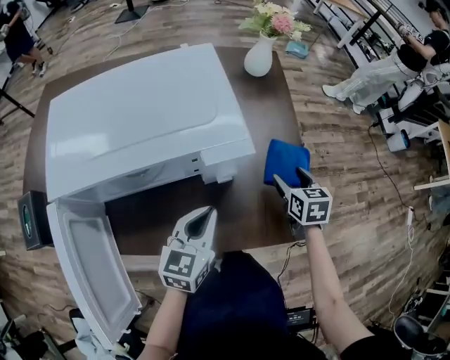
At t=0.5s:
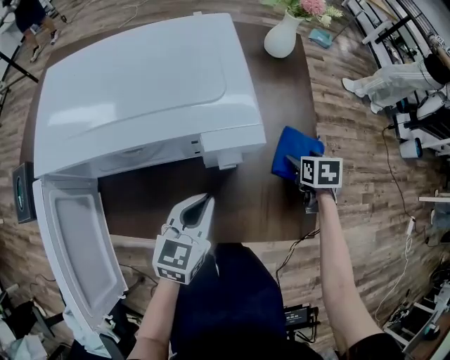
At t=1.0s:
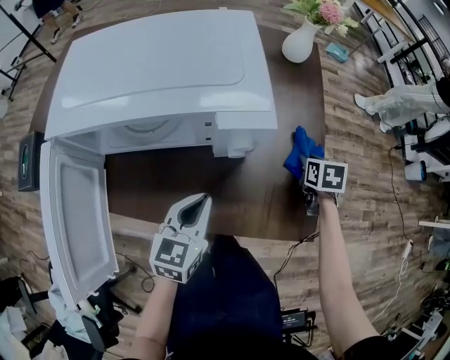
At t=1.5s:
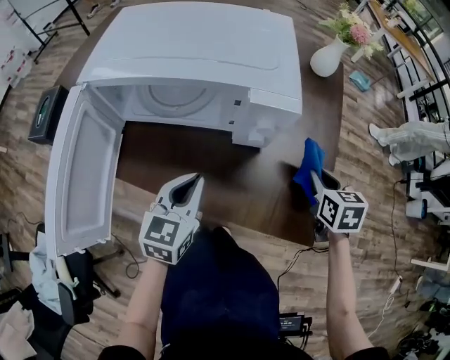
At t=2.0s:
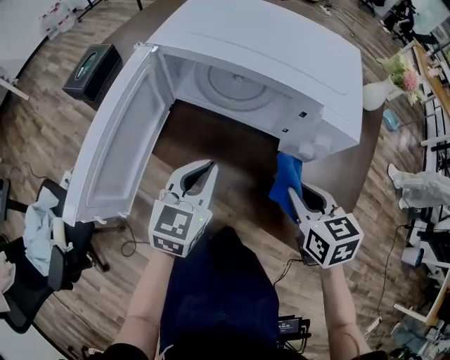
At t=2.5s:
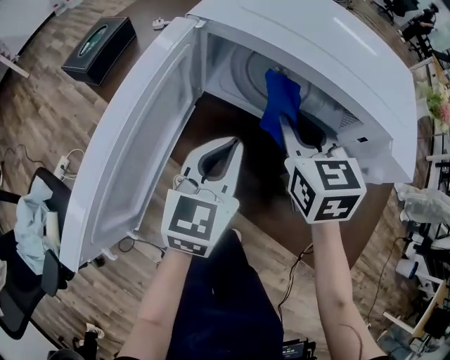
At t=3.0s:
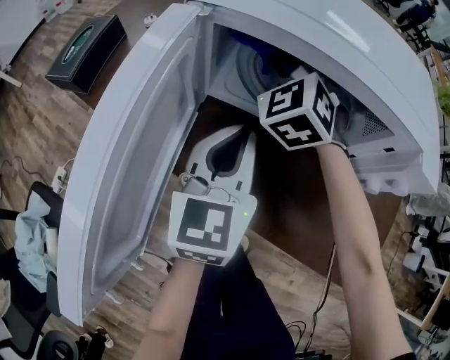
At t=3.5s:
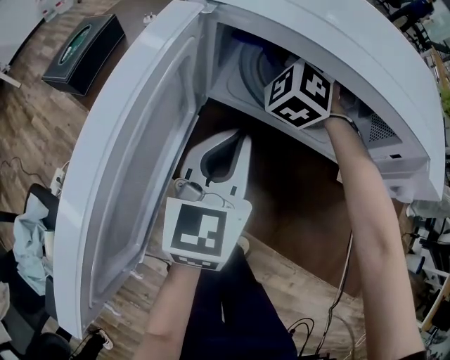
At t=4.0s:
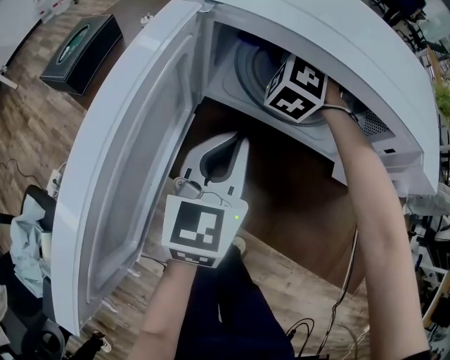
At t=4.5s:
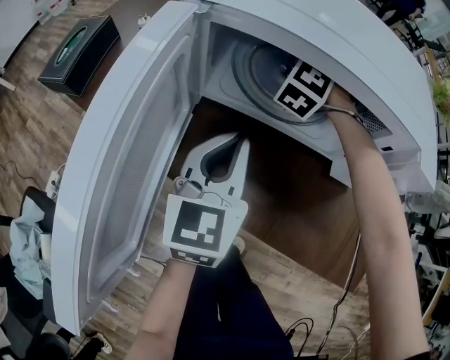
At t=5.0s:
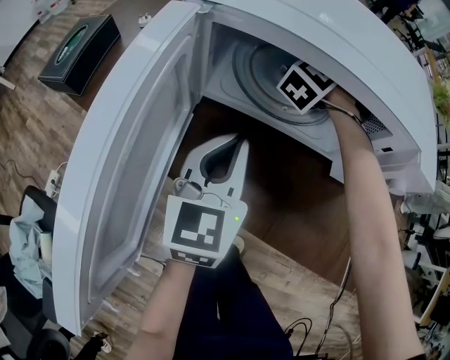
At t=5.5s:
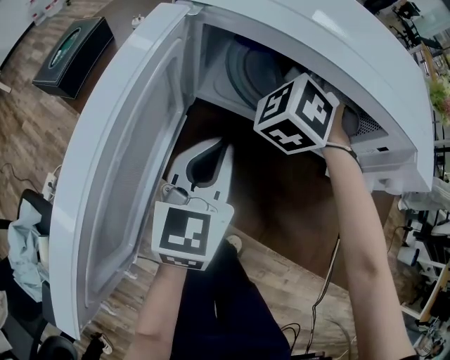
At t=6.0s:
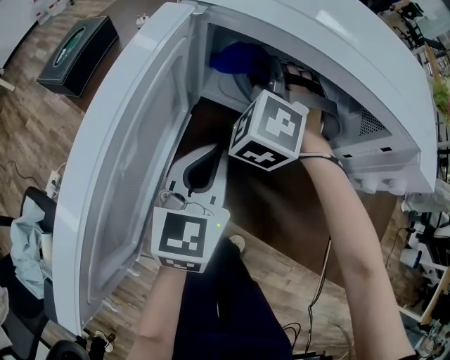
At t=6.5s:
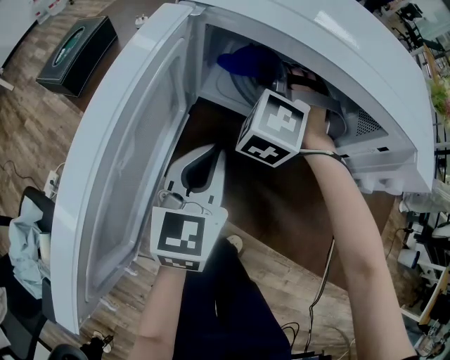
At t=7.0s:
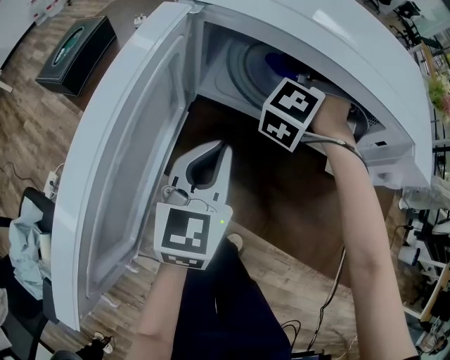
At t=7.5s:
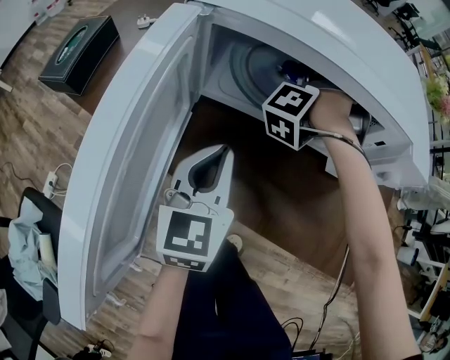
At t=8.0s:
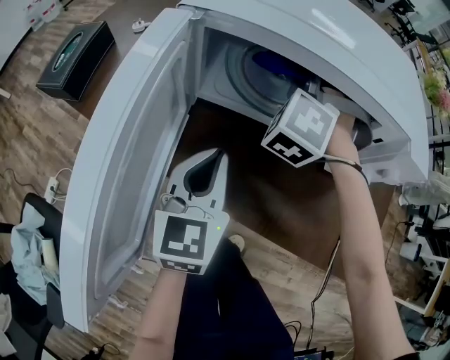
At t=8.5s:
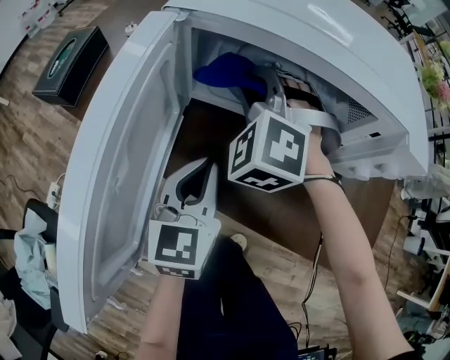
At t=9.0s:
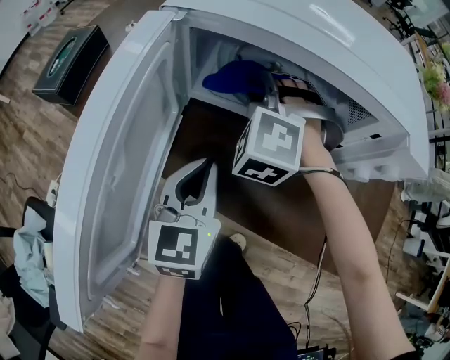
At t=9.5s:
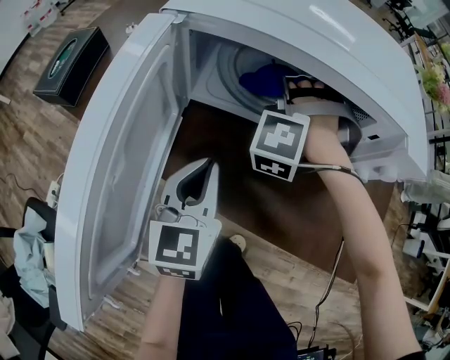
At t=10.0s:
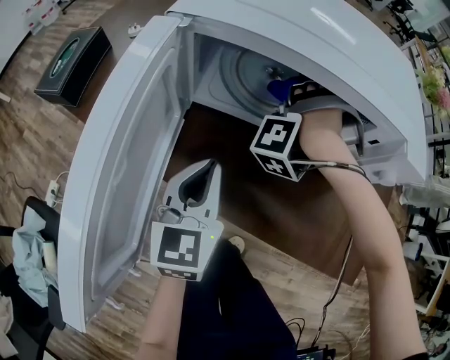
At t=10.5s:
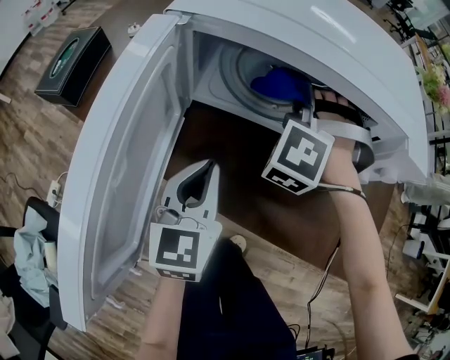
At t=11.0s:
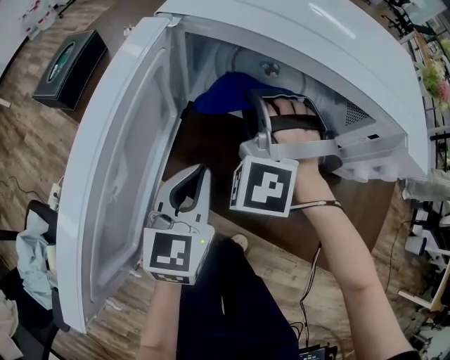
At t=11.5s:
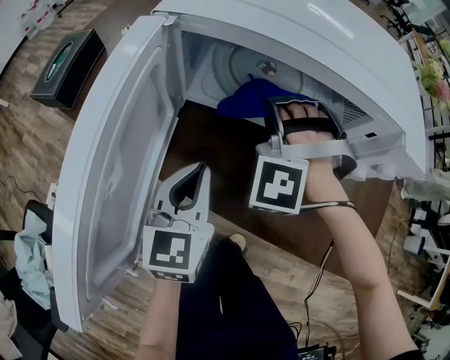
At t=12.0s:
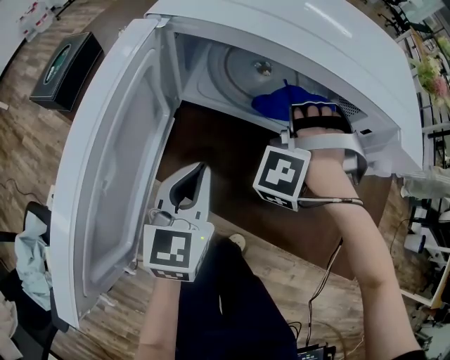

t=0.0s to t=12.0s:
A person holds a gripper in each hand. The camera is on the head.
t=0.0s to t=2.0s: The left gripper ends up roughly 15 cm from where it was, and changes its angle by about 30 degrees, while the right gripper shifts by approximately 25 cm, rotates some 50 degrees, and closes up.
t=2.0s to t=4.0s: The right gripper travels forward and to the left by about 40 cm, and rotates around the line of its fingers by roughly 80 degrees, counterclockwise from behind. Meanwhile the left gripper heads forward and to the left, covering approximately 15 cm.
t=4.0s to t=6.0s: The right gripper heads backward, covering approximately 10 cm, and reaches approximately 10 cm to the right, then returns.
t=8.0s to t=10.0s: The right gripper shifts by roughly 10 cm, and swivels about 50 degrees.

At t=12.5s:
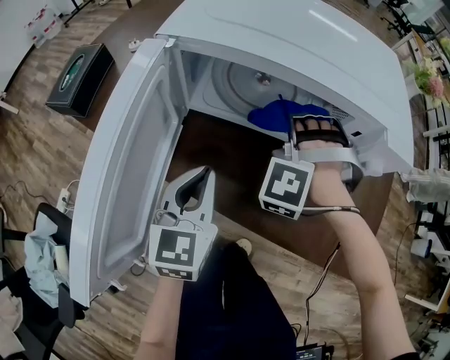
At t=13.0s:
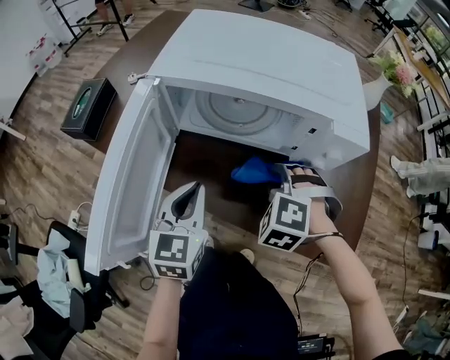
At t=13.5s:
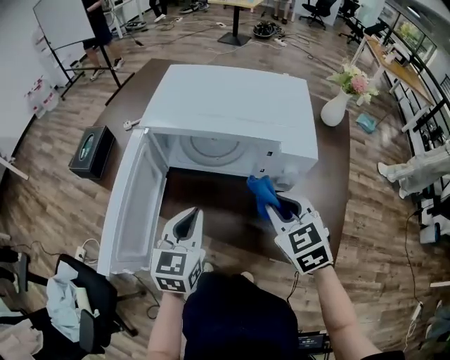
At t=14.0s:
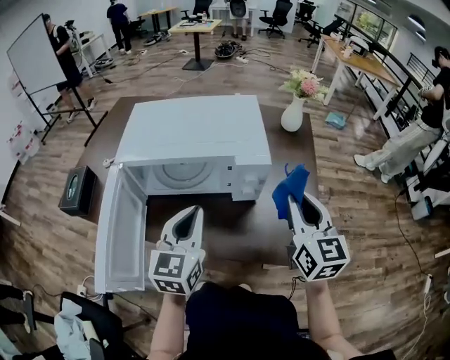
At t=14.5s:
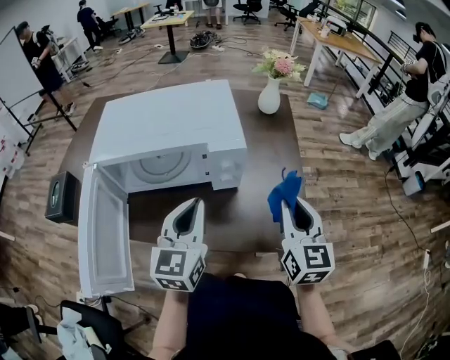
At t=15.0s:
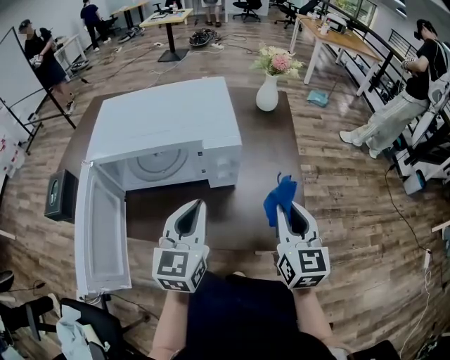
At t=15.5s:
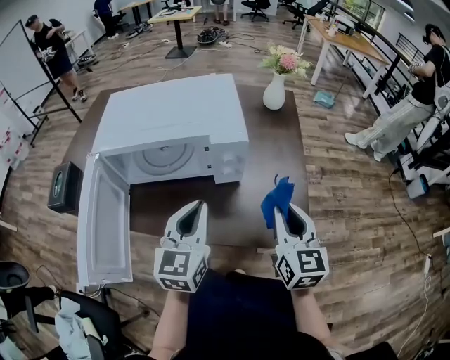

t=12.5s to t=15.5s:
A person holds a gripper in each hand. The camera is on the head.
t=12.5s to t=14.0s: The right gripper shifts about 35 cm to the right, upward and backward, and rotates around the line of its fingers by some 110 degrees, clockwise from behind. The left gripper travels upward and to the right by some 25 cm.
t=14.0s to t=15.5s: The left gripper goes roughly 5 cm to the right; the right gripper travels downward and backward by roughly 10 cm.

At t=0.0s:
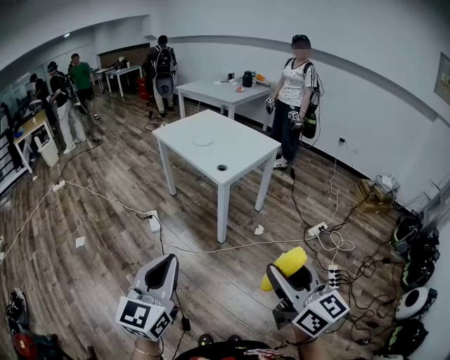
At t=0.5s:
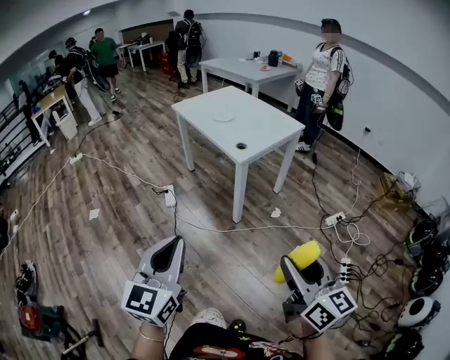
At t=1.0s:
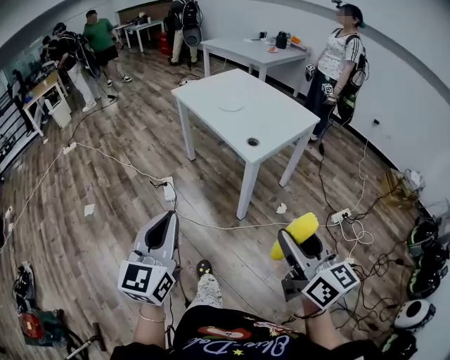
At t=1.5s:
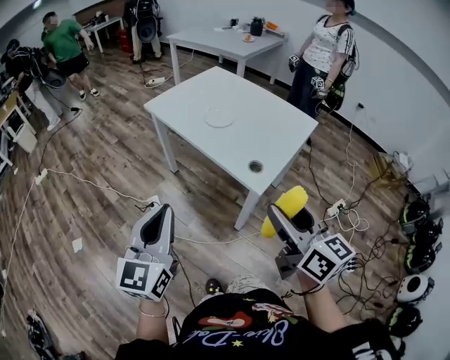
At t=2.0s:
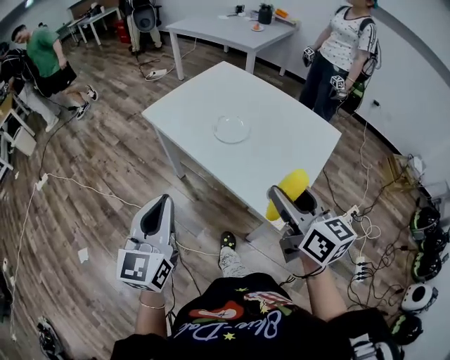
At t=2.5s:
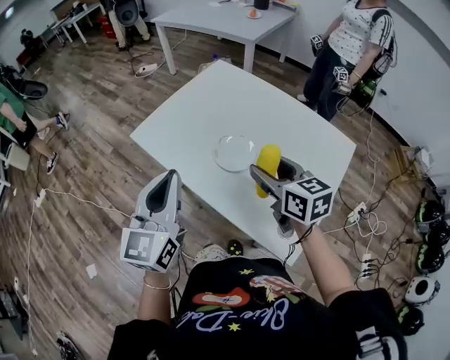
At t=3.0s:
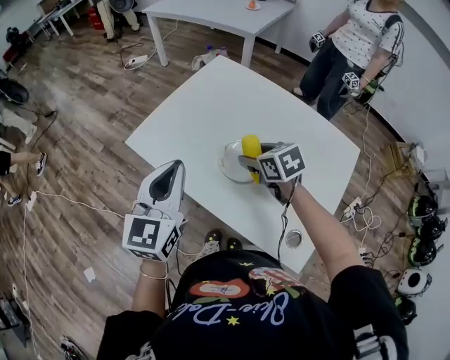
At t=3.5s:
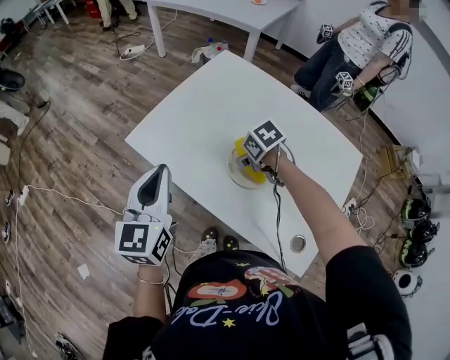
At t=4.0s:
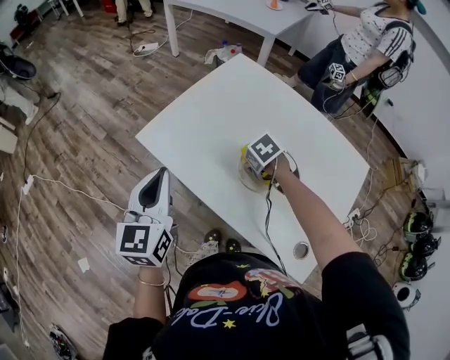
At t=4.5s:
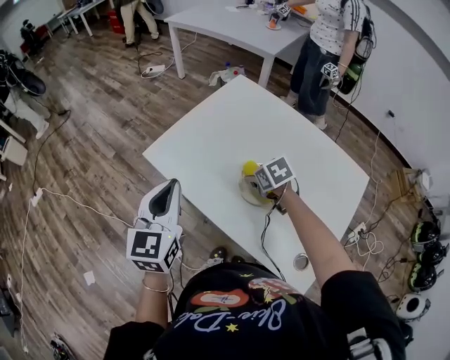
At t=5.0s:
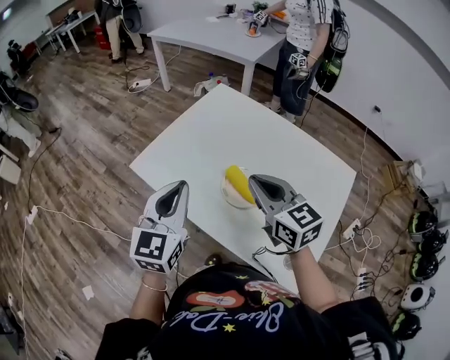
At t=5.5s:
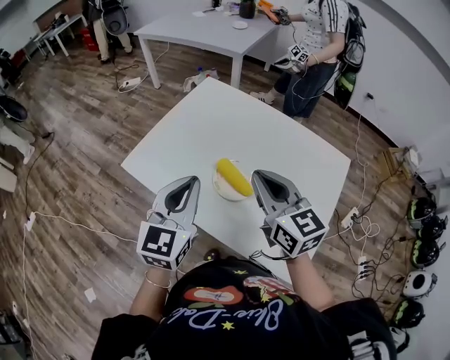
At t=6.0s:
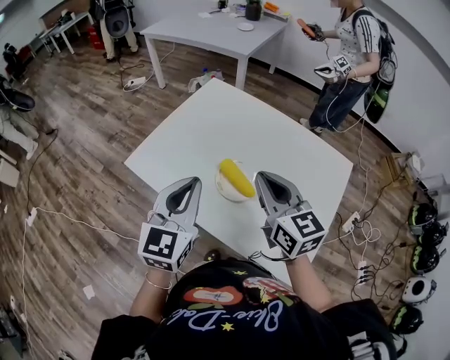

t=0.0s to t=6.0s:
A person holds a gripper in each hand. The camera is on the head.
t=0.0s to t=2.0s: The two grippers travel together, forward, some 70 cm.
t=2.0s to t=4.0s: The right gripper shifts by some 50 cm, and points its fingers approximately 70 degrees further downward, while the left gripper ends up some 35 cm from where it was.
t=4.0s to t=6.0s: The right gripper heads upward, covering some 25 cm, angles its fingers upward, by some 70 degrees, and closes. The left gripper changes place by some 15 cm, and turns by some 20 degrees.

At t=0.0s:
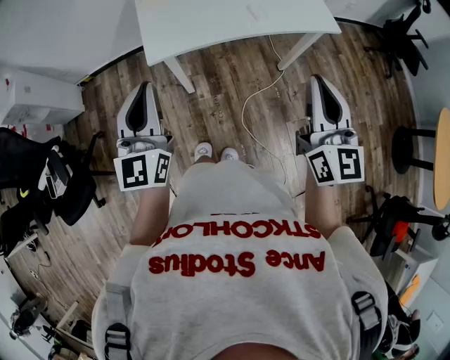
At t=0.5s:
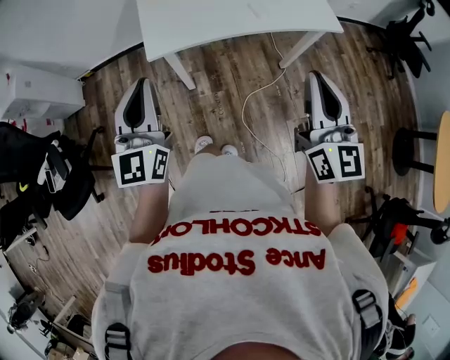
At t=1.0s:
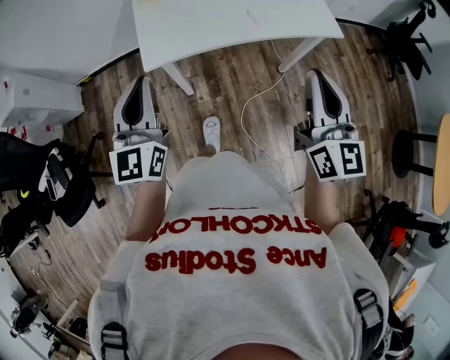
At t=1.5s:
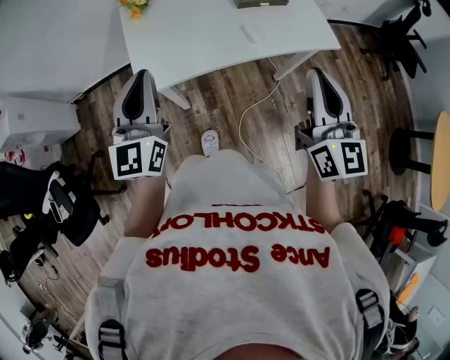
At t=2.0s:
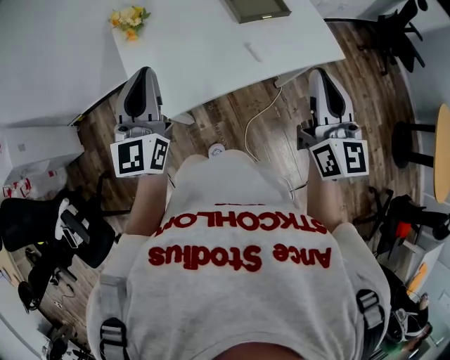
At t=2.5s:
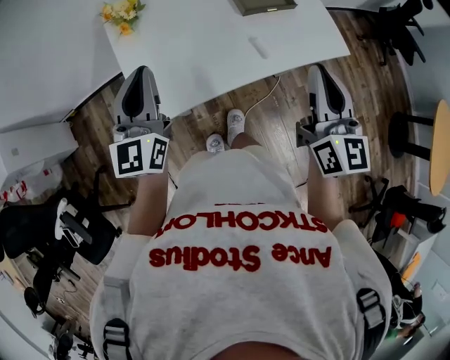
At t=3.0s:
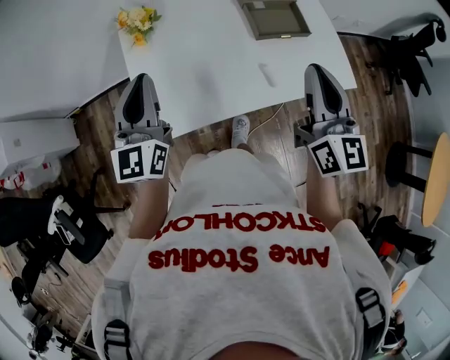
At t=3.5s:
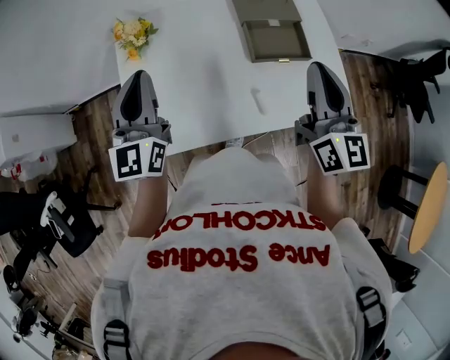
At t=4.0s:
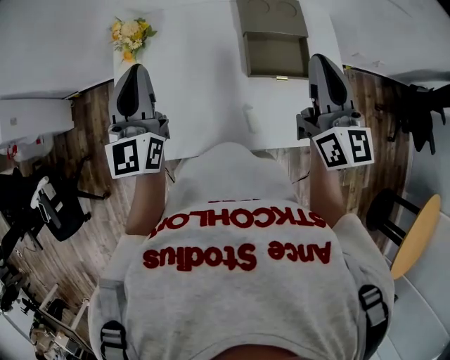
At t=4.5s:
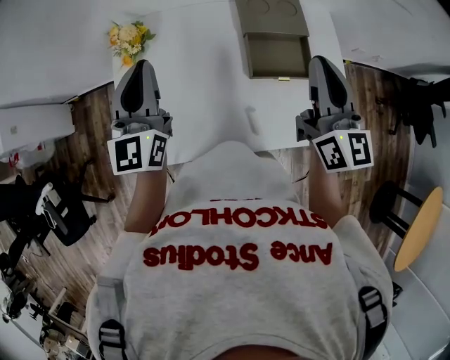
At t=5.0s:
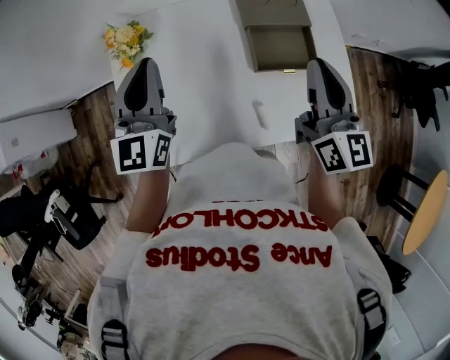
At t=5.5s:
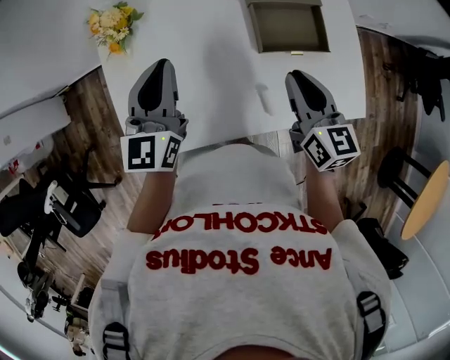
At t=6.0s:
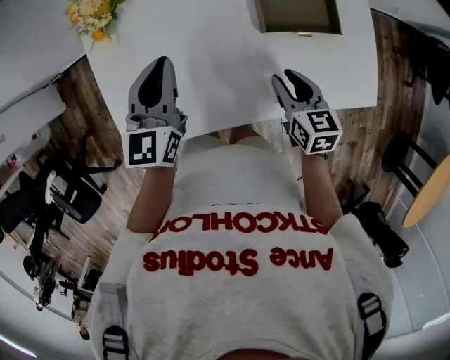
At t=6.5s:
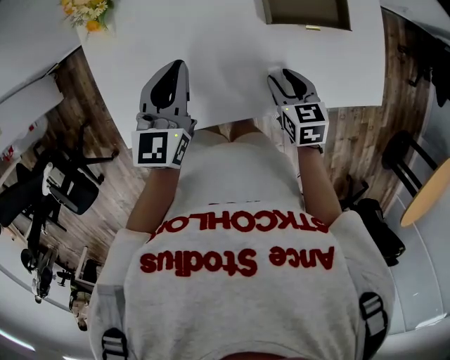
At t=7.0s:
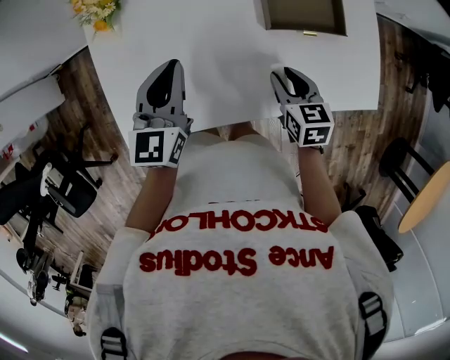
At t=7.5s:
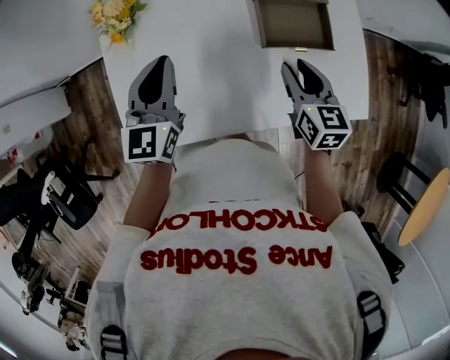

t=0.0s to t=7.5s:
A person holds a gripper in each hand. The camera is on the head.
t=0.0s to t=2.0s: Both grippers travel together forward, about 20 cm.
t=2.0s to t=4.0s: The right gripper heads forward, covering some 30 cm, and turns by roughly 20 degrees. Meanwhile the left gripper shifts approximately 15 cm forward, and changes its angle by approximately 20 degrees.
t=4.0s to t=5.5s: The right gripper travels downward by about 15 cm, and changes its angle by about 30 degrees. The left gripper travels downward by some 10 cm, and turns by roughly 20 degrees.
t=5.5s to t=7.5s: The left gripper moves roughly 10 cm downward and comes back. The right gripper travels downward and back again, about 20 cm each way, and opens up.
